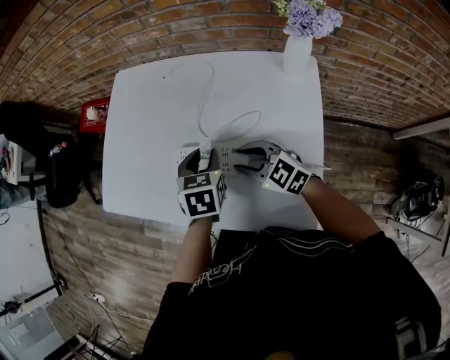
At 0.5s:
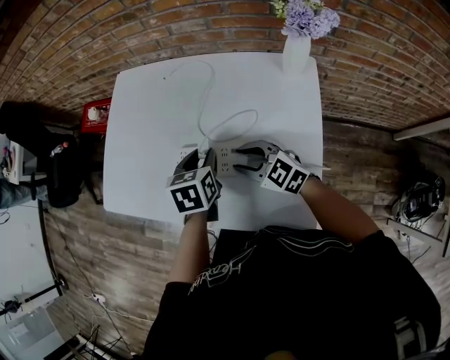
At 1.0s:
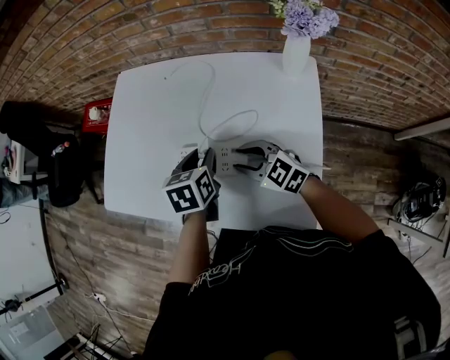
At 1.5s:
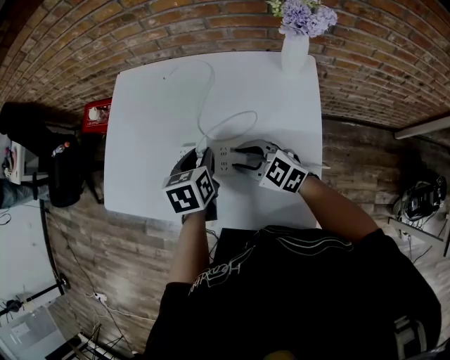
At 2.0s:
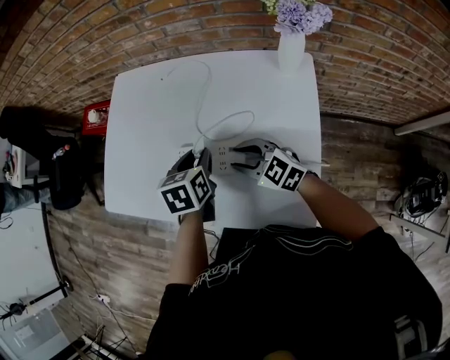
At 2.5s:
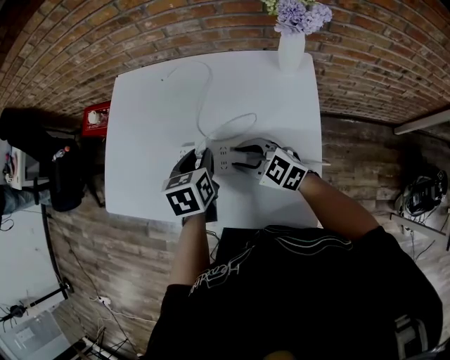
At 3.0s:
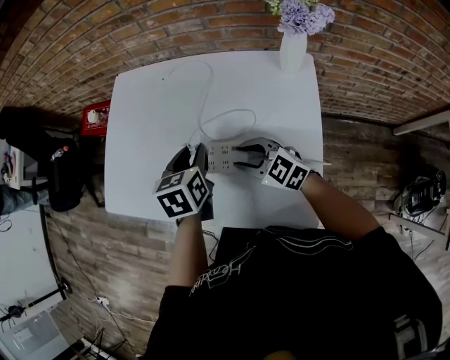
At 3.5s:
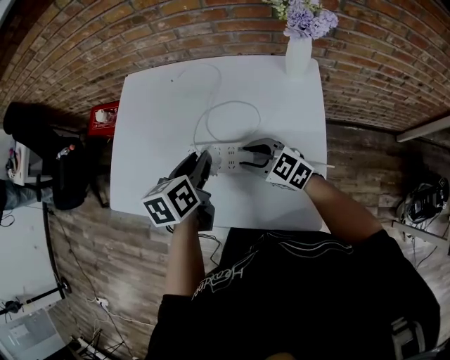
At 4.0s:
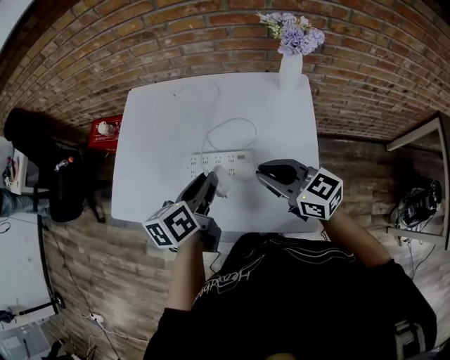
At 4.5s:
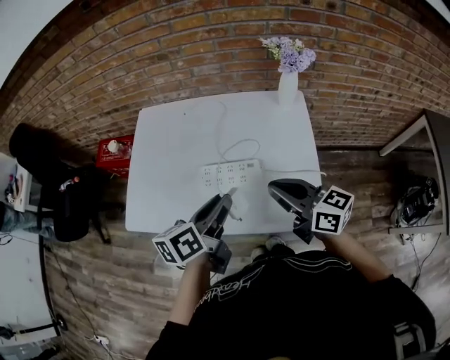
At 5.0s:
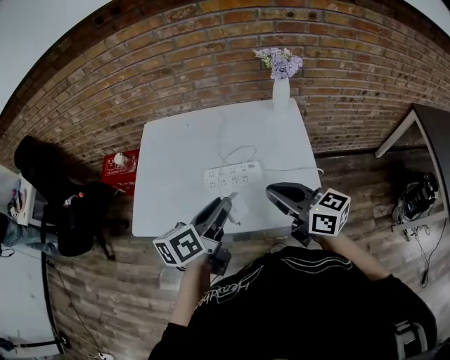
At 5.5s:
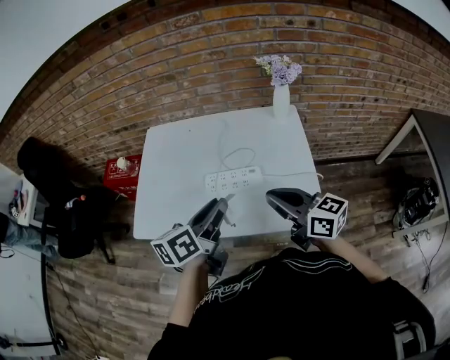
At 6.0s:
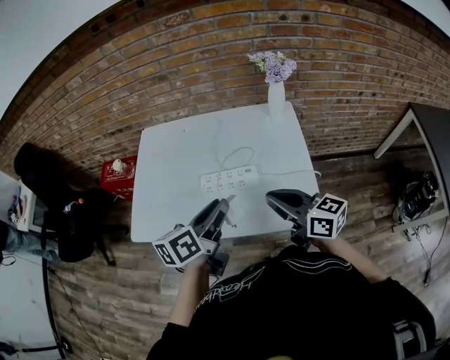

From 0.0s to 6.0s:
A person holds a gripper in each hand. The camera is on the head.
From 0.0s to 2.0s: The grippers move only a little.
From 2.0s to 4.0s: Both grippers travel together upward and backward, roughly 10 cm. The right gripper rotates about 30 degrees, and closes up. Meanwhile the left gripper changes its angle by some 30 degrees.
From 4.0s to 6.0s: The grippers both shift backward and upward by approximately 10 cm.

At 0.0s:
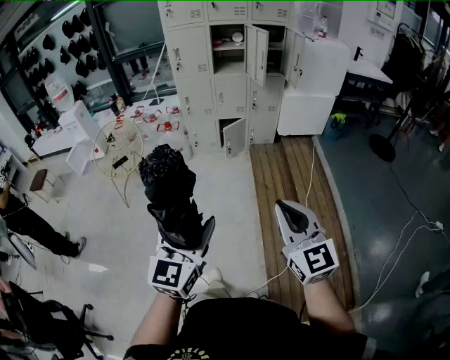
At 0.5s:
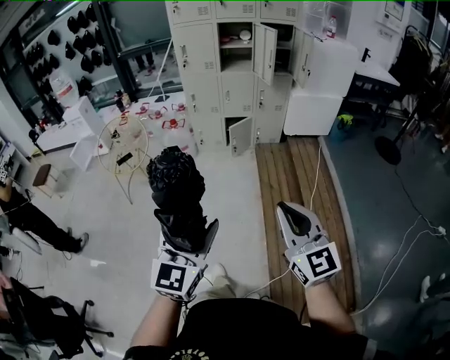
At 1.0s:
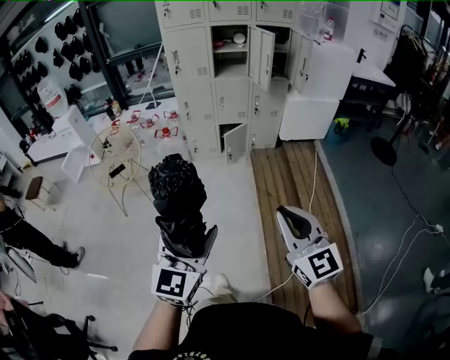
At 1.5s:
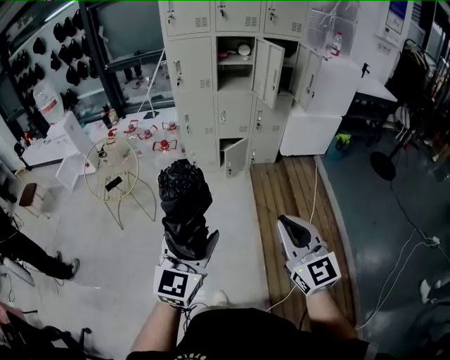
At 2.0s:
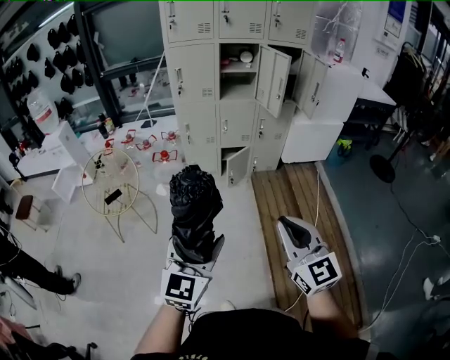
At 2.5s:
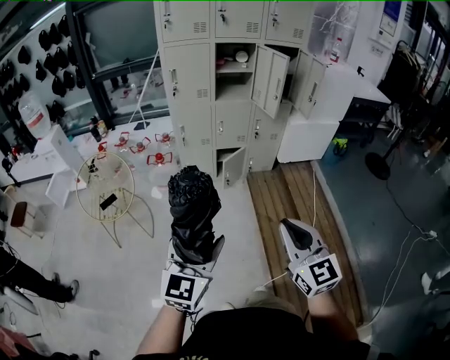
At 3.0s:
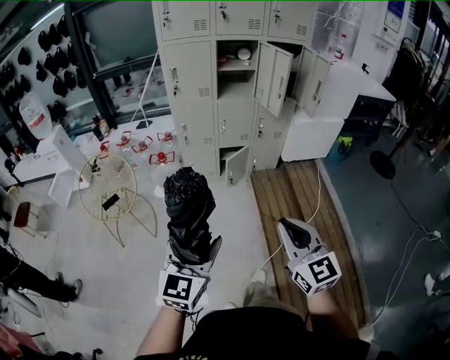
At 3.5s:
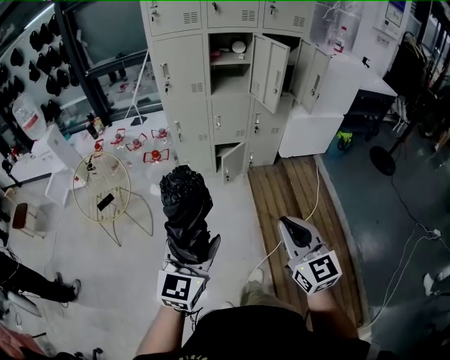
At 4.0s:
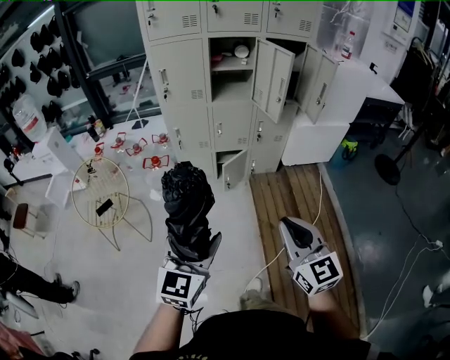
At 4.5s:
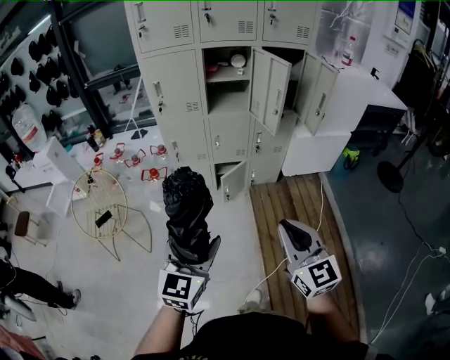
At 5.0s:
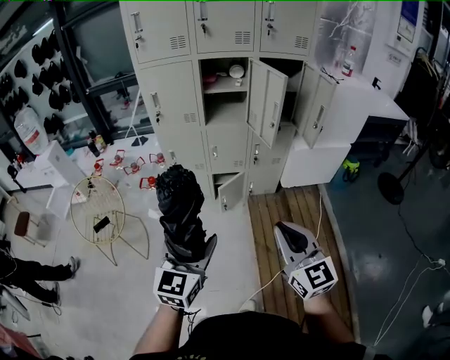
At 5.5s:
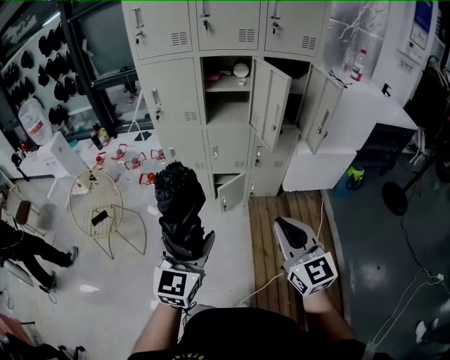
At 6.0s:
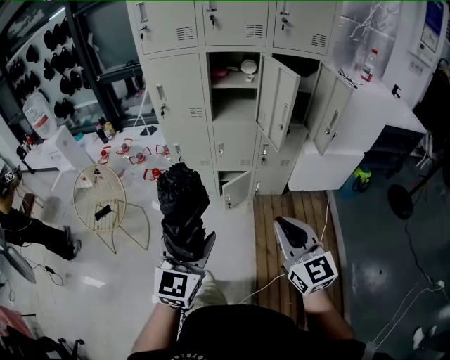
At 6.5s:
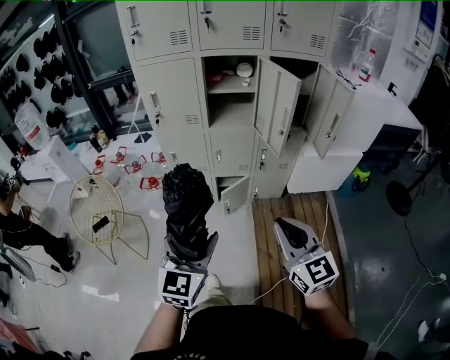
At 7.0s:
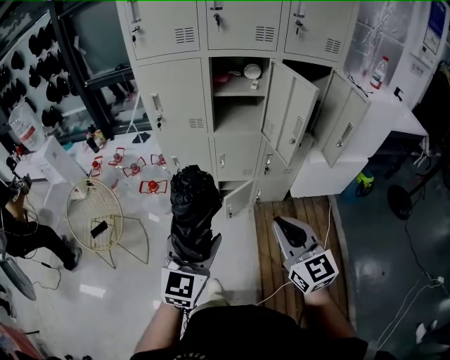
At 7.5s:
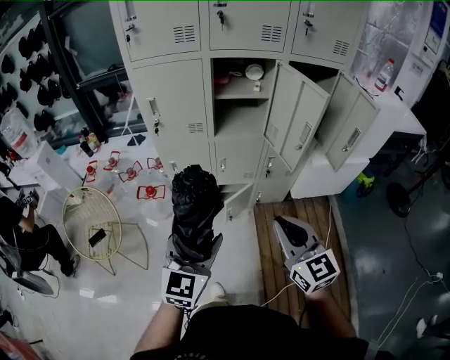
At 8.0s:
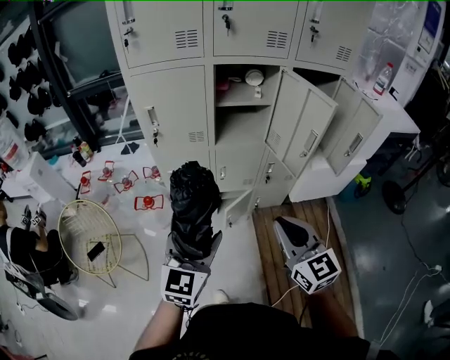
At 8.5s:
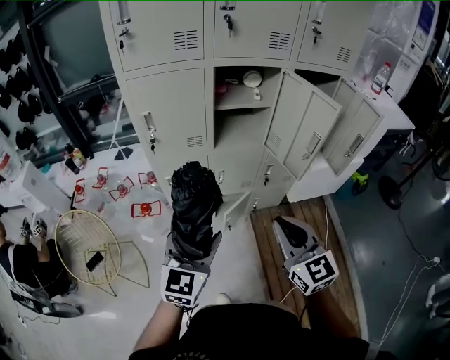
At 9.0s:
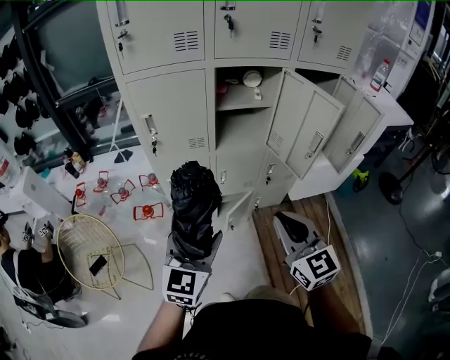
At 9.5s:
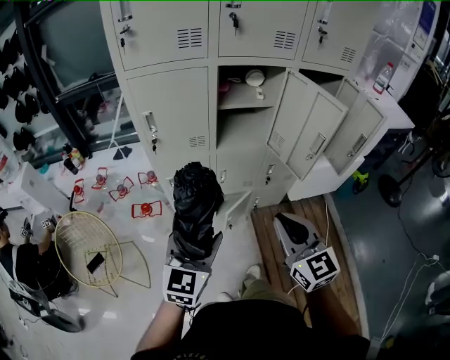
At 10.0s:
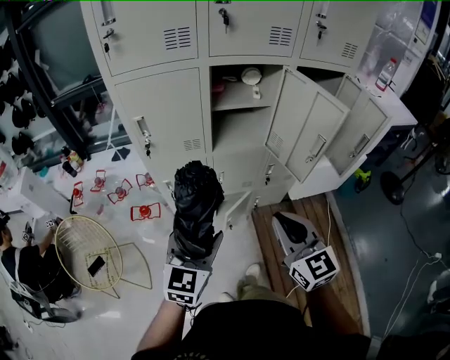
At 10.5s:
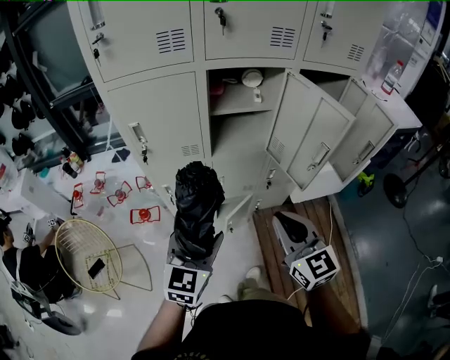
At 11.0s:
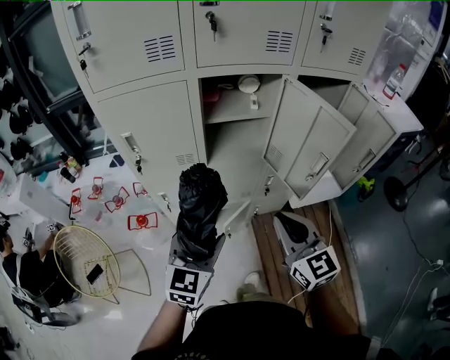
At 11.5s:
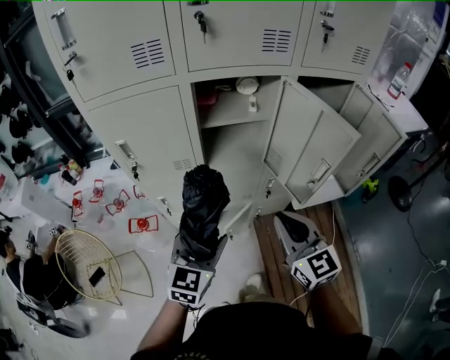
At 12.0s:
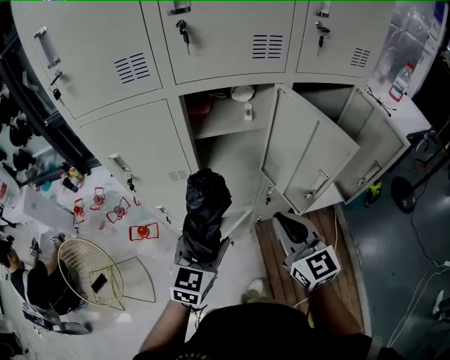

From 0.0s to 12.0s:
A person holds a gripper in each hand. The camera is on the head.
From 0.0s to 2.0s: Both grippers move forward and to the left, roughly 25 cm.
From 2.0s to 4.0s: The grippers both shift forward by about 15 cm.
From 4.0s to 6.0s: The grippers both shift forward and to the right by about 20 cm.
From 6.0s to 8.0s: The grippers both shift forward and to the left by approximately 25 cm.
From 8.0s to 10.0s: Both grippers travel together forward, roughly 10 cm.
From 10.0s to 12.0s: The grippers both shift forward and to the right by approximately 15 cm.

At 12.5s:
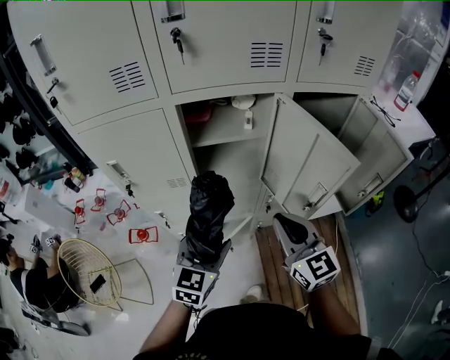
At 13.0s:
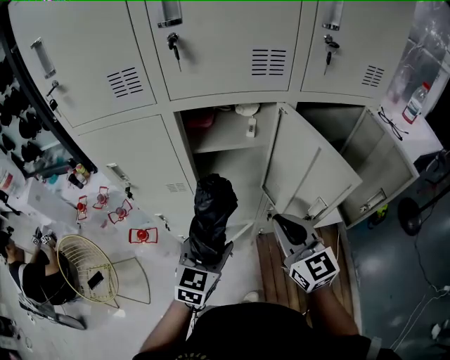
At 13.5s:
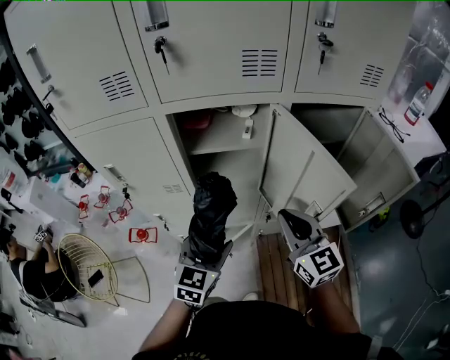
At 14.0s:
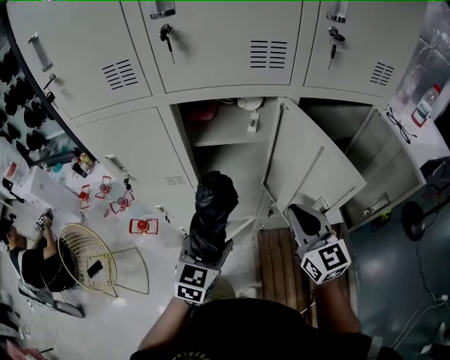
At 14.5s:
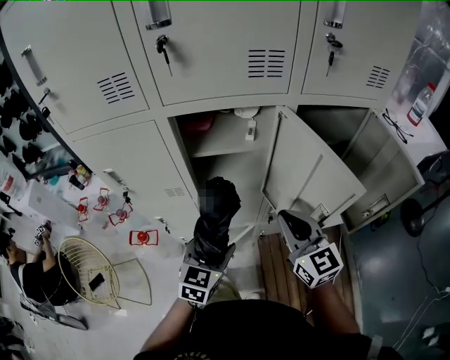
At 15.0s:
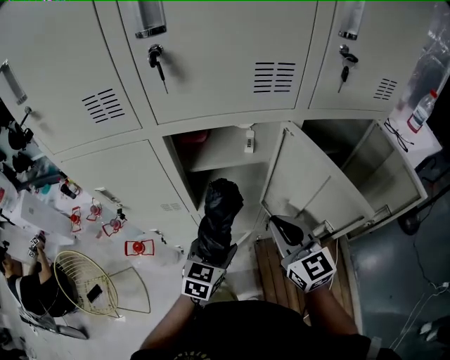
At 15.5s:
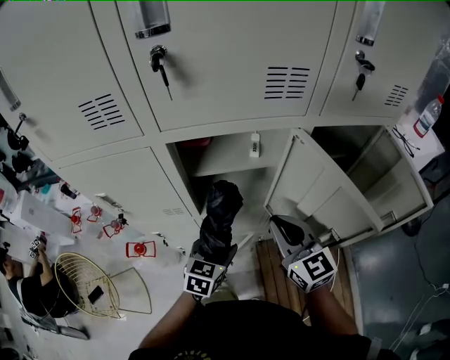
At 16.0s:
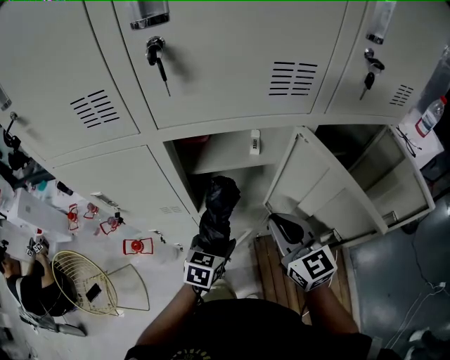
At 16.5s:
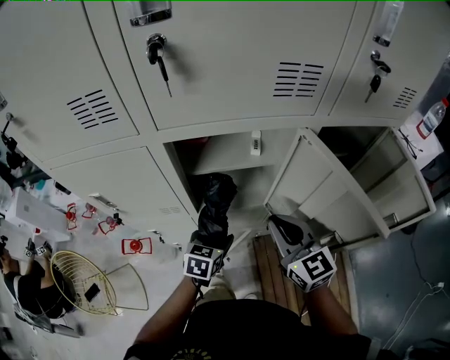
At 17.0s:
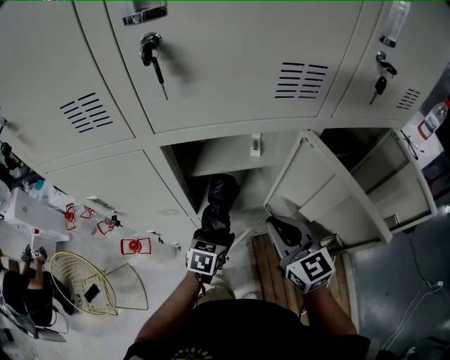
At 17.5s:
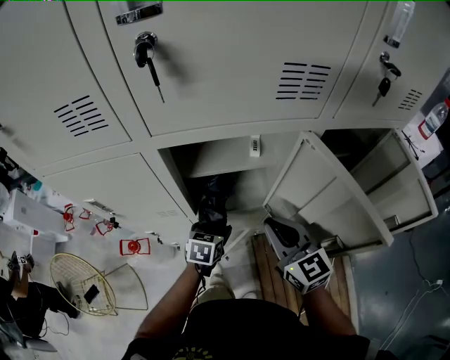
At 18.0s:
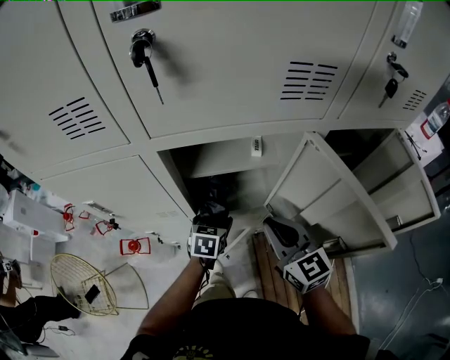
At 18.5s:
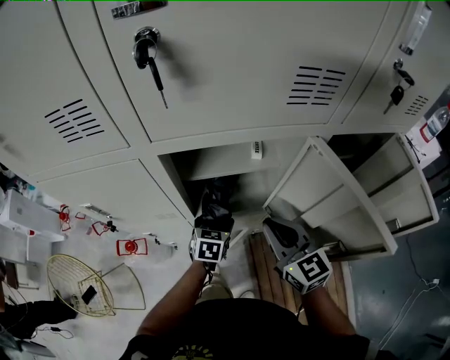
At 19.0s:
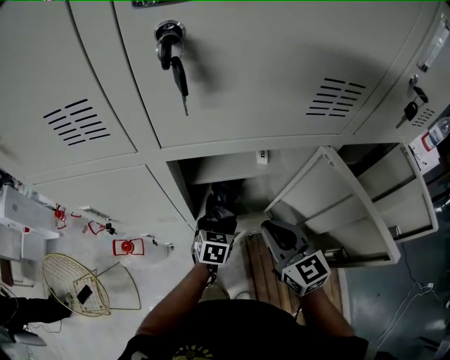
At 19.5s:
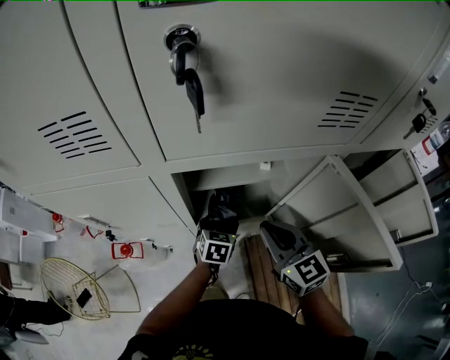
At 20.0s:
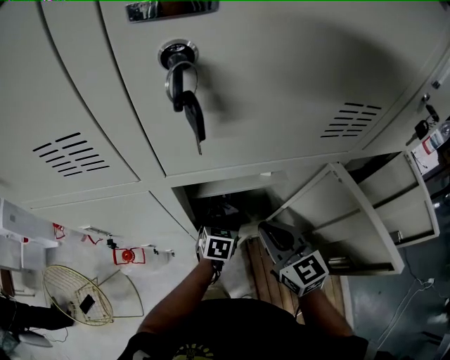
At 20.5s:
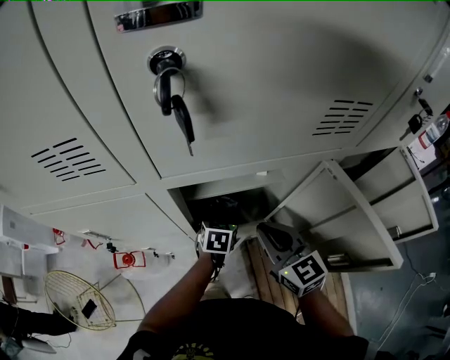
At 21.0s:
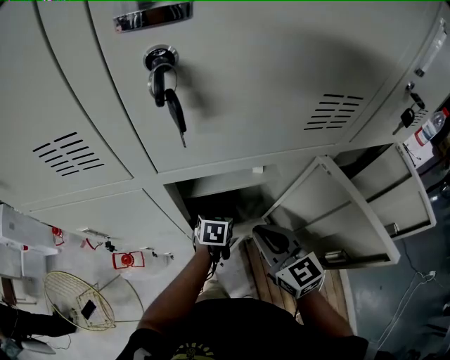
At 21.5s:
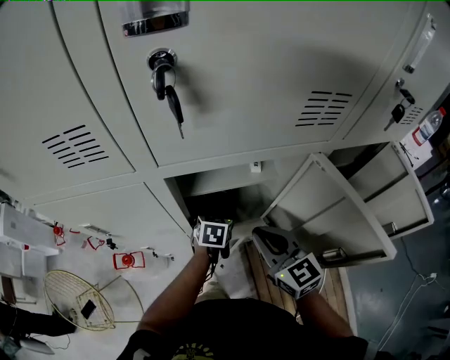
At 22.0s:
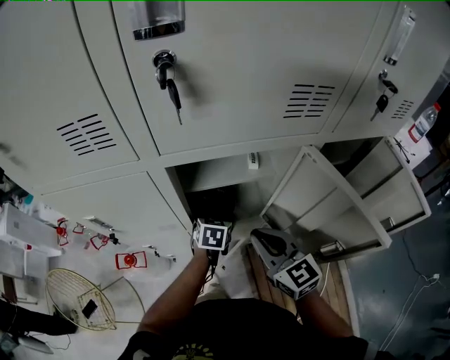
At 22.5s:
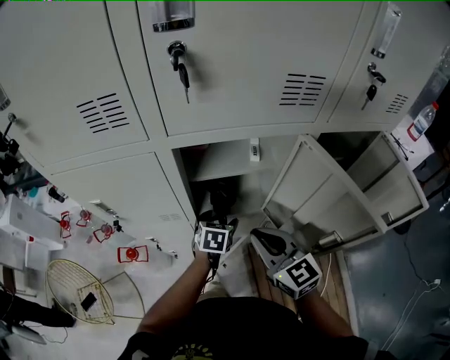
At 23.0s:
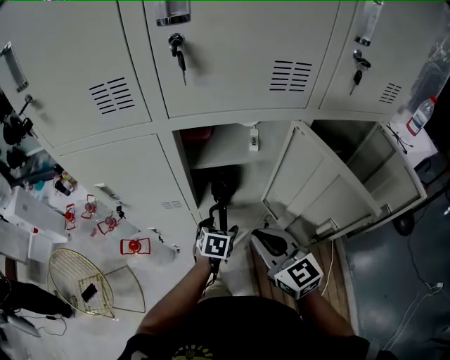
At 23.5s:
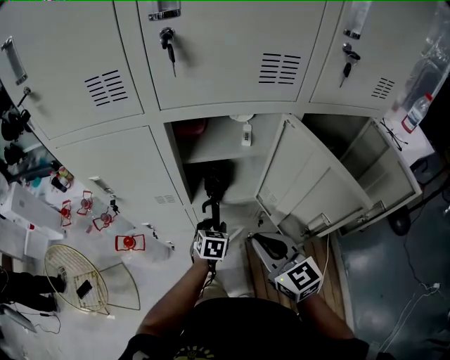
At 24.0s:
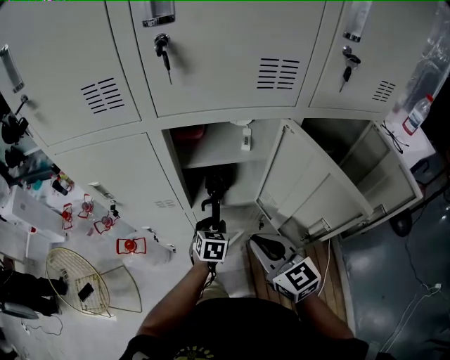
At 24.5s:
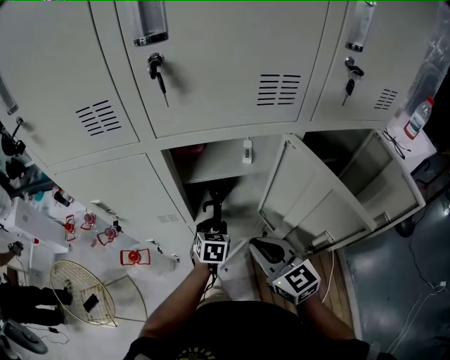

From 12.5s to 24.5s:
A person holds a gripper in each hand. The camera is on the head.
From 12.5s to 14.5s: The left gripper moves some 5 cm. The right gripper moves forward, roughly 5 cm.
From 14.5s to 16.5s: The right gripper moves forward, approximately 5 cm. Meanwhile the left gripper heads forward and downward, covering approximately 15 cm.
From 16.5s to 18.5s: The left gripper travels forward by about 10 cm.
From 18.5s to 20.5s: The left gripper goes roughly 5 cm forward.
From 20.5s to 22.5s: Both grippers move backward, approximately 5 cm.
From 22.5s to 24.5s: The left gripper closes its fingers.
